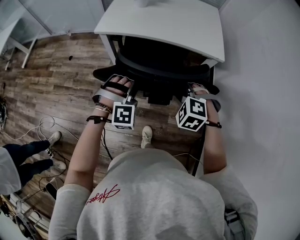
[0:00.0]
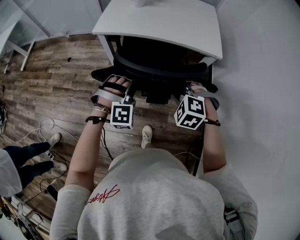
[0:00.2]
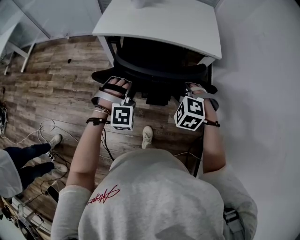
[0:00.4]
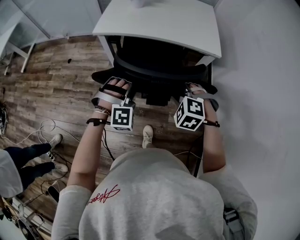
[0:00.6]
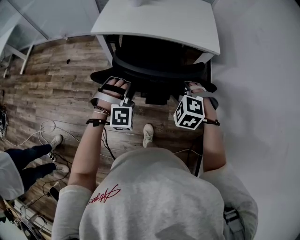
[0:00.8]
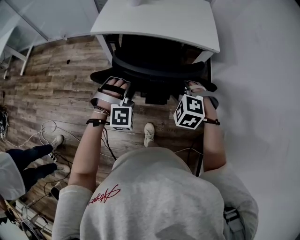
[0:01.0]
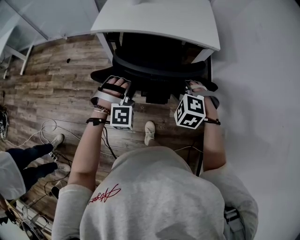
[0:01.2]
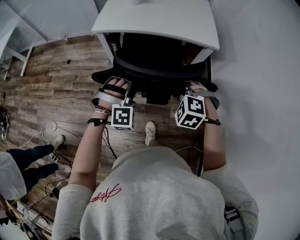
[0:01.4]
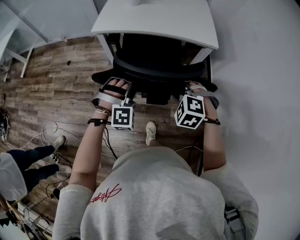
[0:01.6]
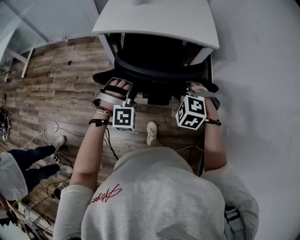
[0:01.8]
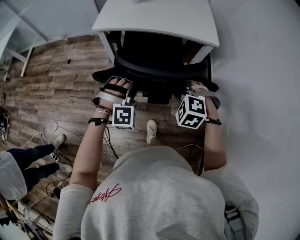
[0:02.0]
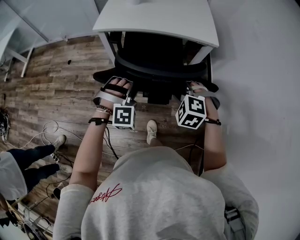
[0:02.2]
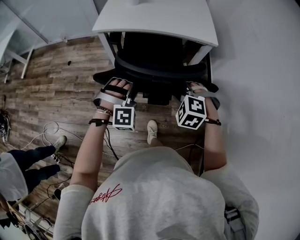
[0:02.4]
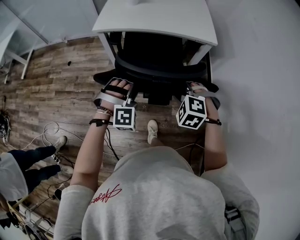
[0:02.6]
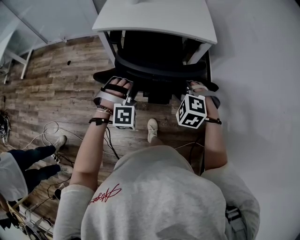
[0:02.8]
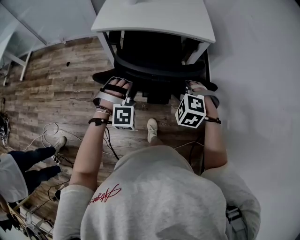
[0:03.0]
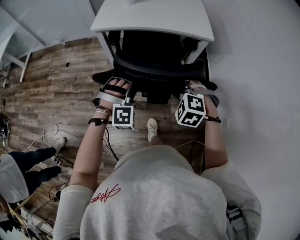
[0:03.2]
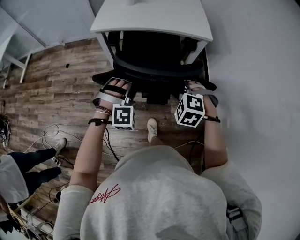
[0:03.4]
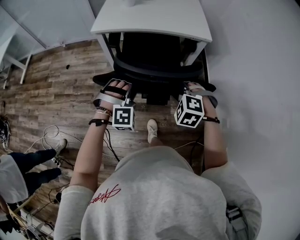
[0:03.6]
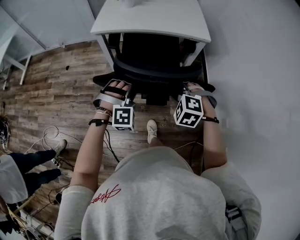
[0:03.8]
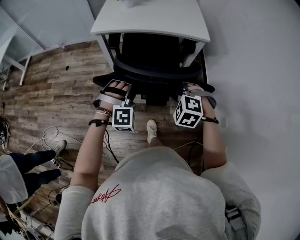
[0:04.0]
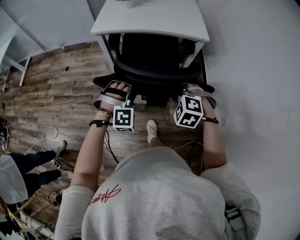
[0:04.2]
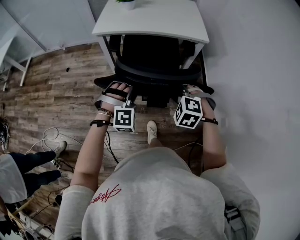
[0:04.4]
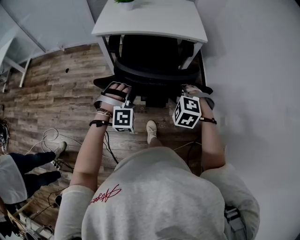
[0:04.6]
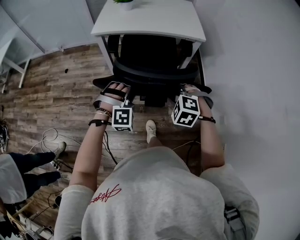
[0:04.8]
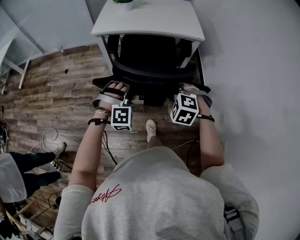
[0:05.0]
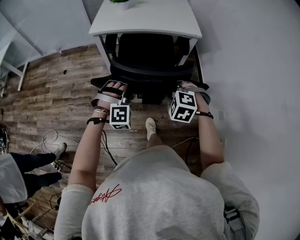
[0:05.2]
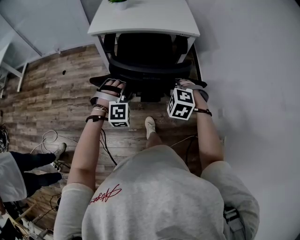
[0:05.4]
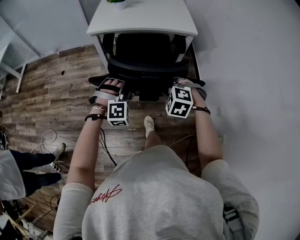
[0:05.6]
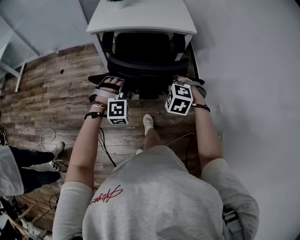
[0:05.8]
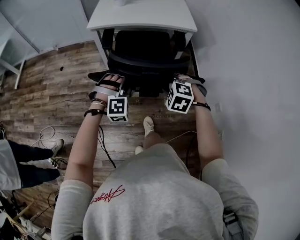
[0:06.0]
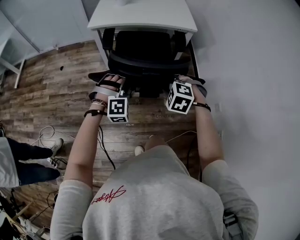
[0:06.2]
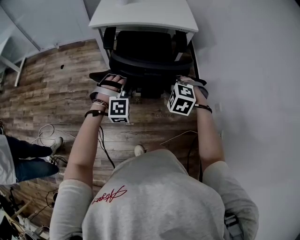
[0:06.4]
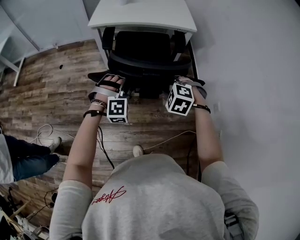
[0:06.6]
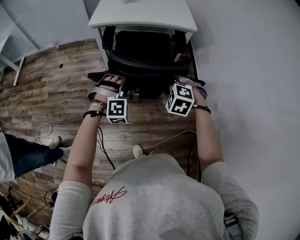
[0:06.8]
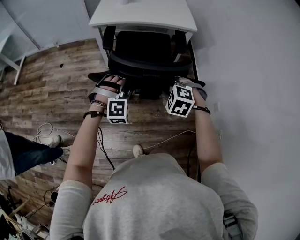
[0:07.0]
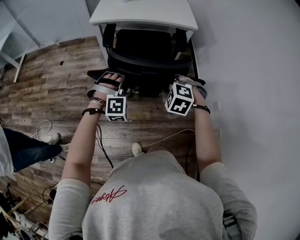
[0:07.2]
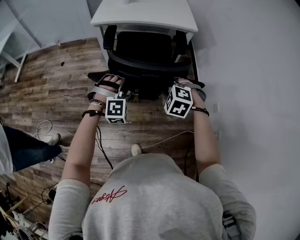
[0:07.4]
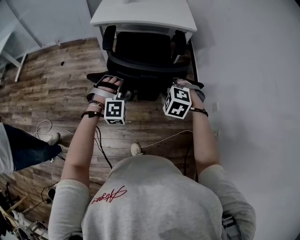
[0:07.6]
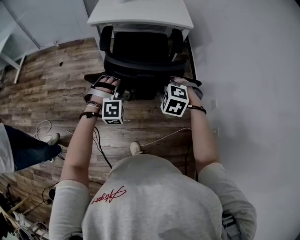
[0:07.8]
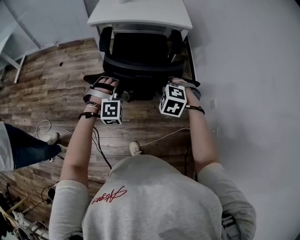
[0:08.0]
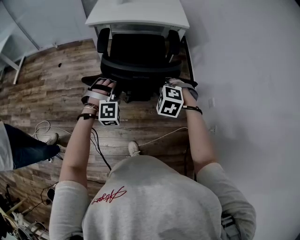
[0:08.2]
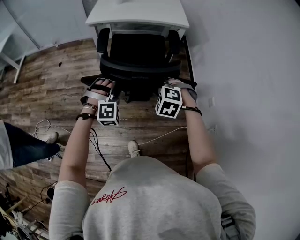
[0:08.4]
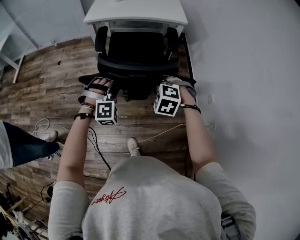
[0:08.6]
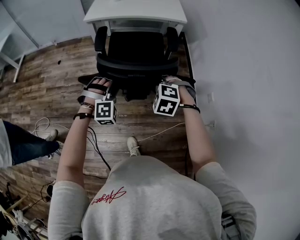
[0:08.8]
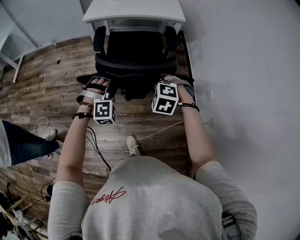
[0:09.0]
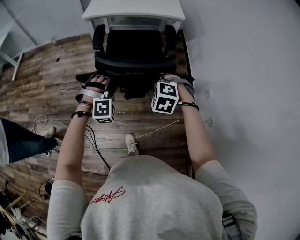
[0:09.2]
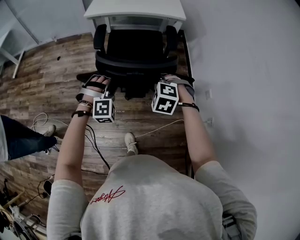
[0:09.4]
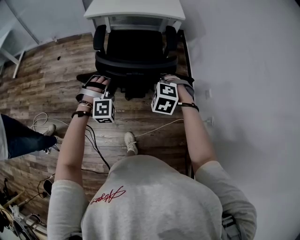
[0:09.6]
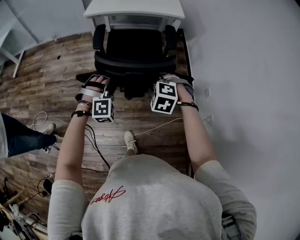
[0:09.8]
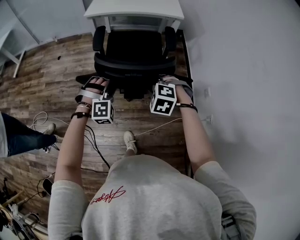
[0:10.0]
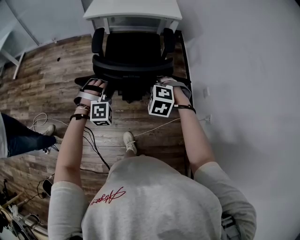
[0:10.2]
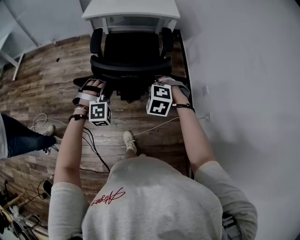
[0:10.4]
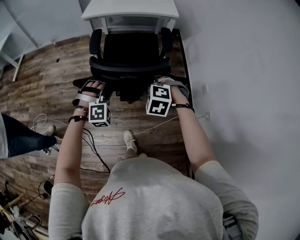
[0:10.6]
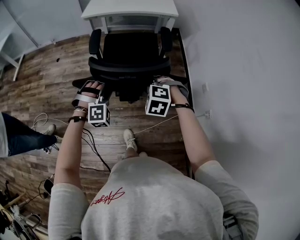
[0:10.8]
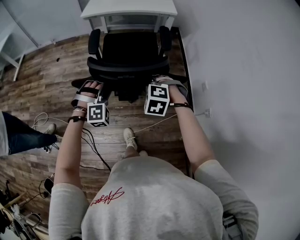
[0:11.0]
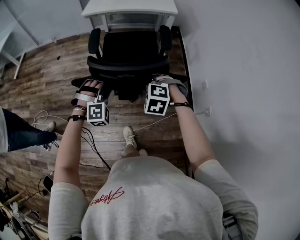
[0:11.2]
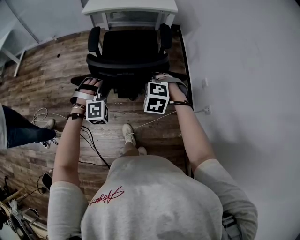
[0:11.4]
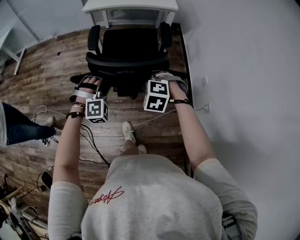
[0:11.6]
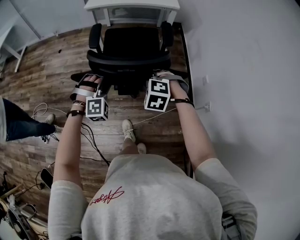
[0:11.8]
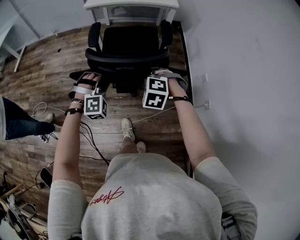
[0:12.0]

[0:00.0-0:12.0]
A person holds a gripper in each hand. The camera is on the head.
0:00.0 to 0:01.6: The two grippers go roughly 5 cm backward.
0:01.6 to 0:03.0: The grippers stay close to where they were, moving slightly.
0:03.0 to 0:04.4: The grippers move only a little.
0:04.4 to 0:06.0: The grippers both shift backward by some 5 cm.
0:06.0 to 0:07.6: Both grippers move backward, roughly 5 cm.
0:07.6 to 0:09.0: The two grippers go approximately 5 cm backward.
0:09.0 to 0:10.4: Both grippers move backward, approximately 5 cm.
0:10.4 to 0:12.0: Both grippers travel together backward, some 10 cm.

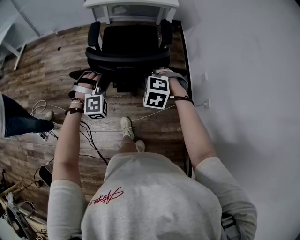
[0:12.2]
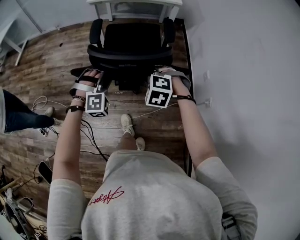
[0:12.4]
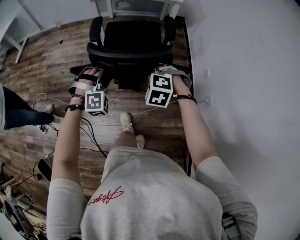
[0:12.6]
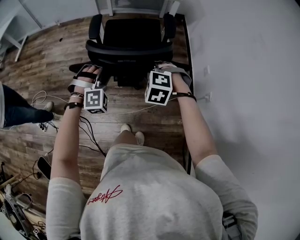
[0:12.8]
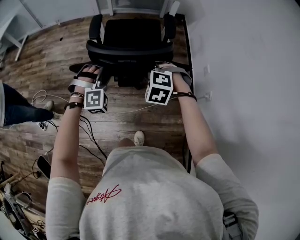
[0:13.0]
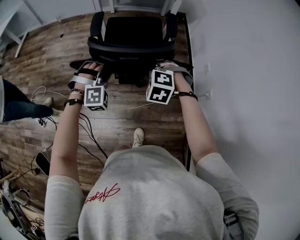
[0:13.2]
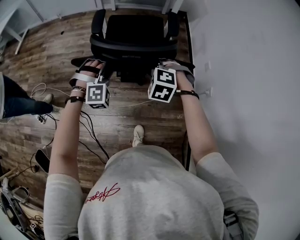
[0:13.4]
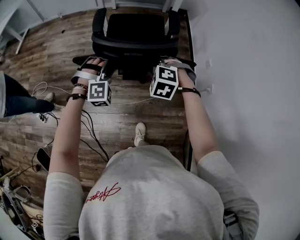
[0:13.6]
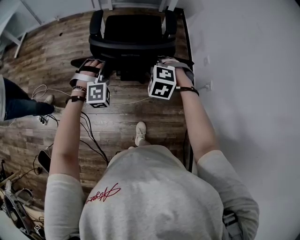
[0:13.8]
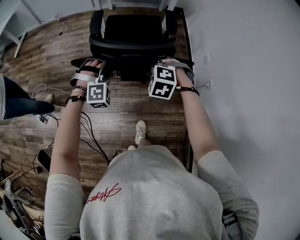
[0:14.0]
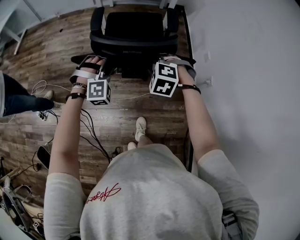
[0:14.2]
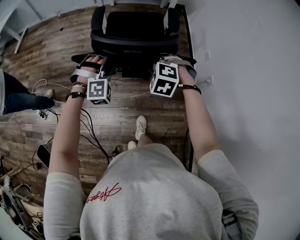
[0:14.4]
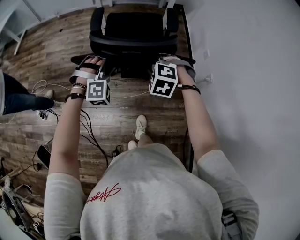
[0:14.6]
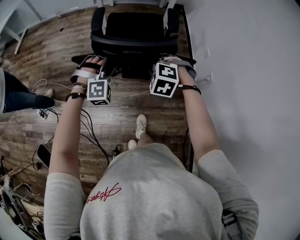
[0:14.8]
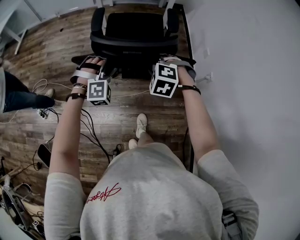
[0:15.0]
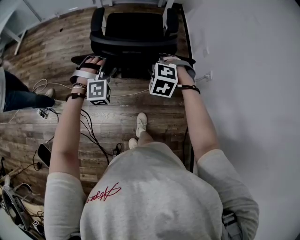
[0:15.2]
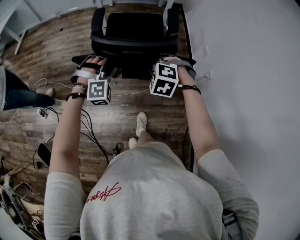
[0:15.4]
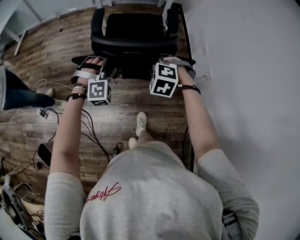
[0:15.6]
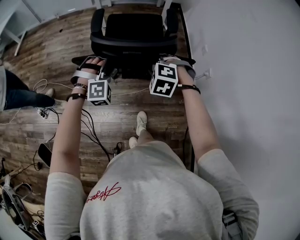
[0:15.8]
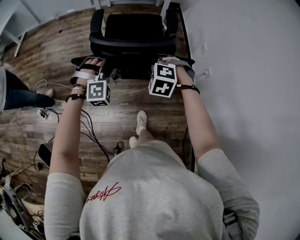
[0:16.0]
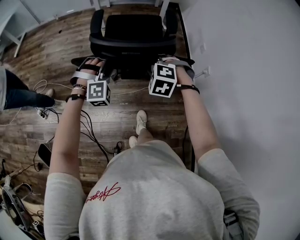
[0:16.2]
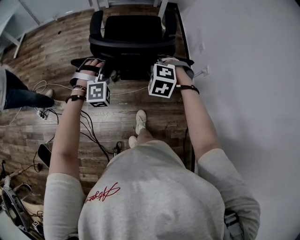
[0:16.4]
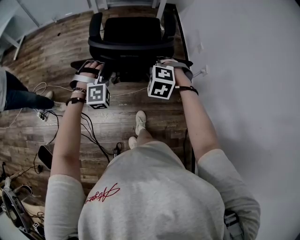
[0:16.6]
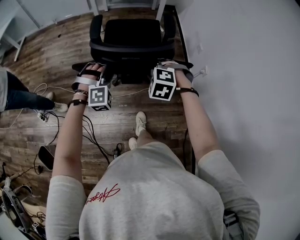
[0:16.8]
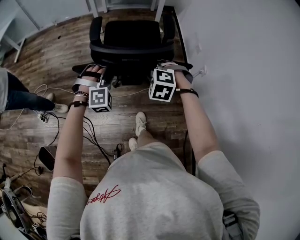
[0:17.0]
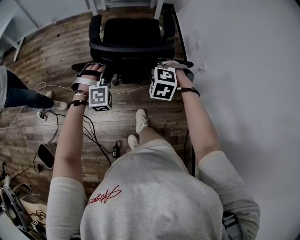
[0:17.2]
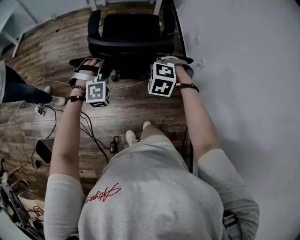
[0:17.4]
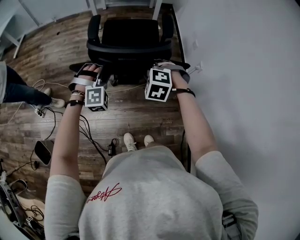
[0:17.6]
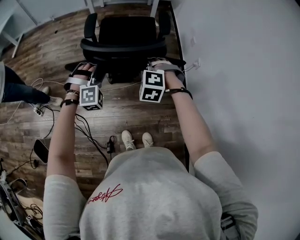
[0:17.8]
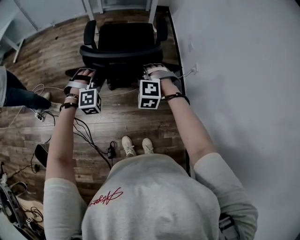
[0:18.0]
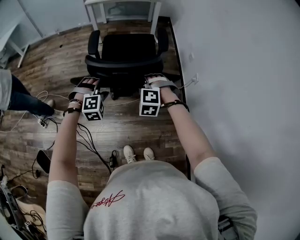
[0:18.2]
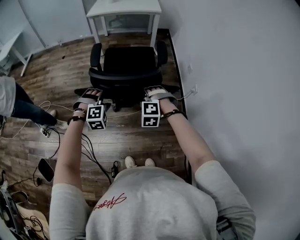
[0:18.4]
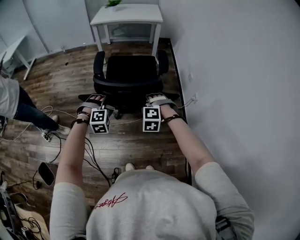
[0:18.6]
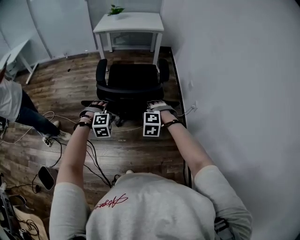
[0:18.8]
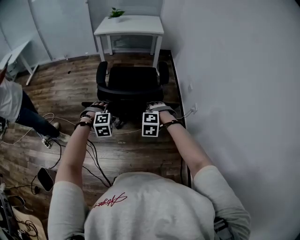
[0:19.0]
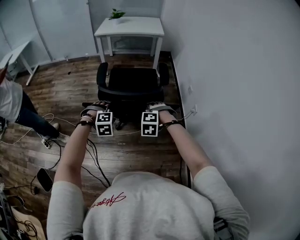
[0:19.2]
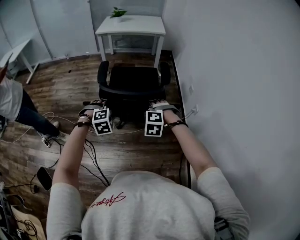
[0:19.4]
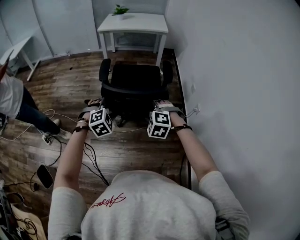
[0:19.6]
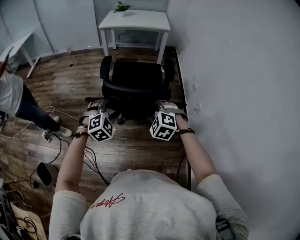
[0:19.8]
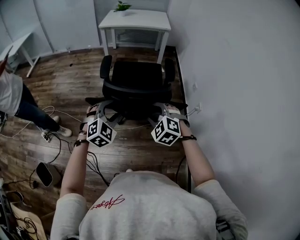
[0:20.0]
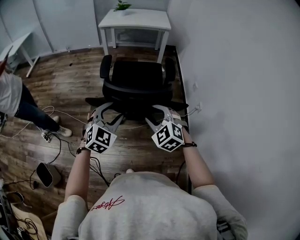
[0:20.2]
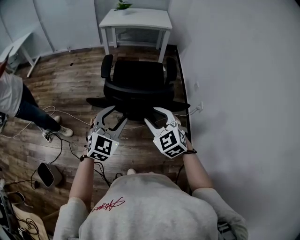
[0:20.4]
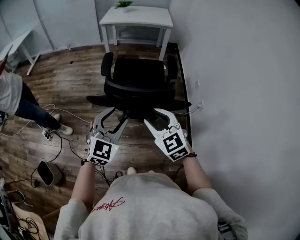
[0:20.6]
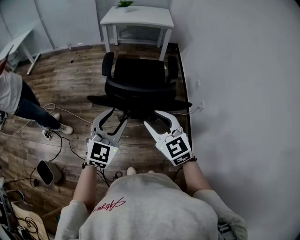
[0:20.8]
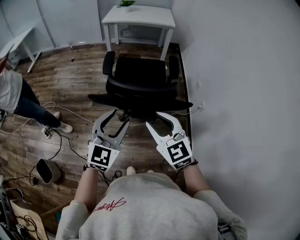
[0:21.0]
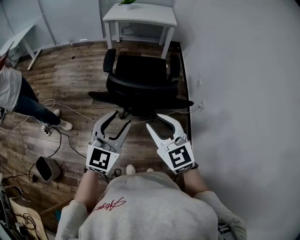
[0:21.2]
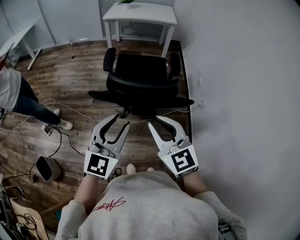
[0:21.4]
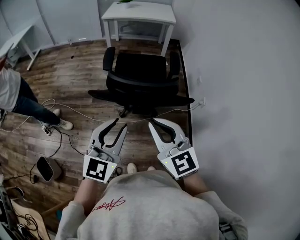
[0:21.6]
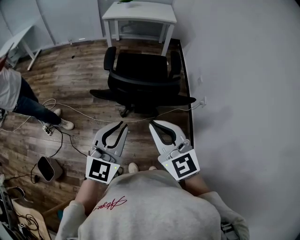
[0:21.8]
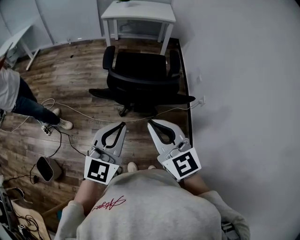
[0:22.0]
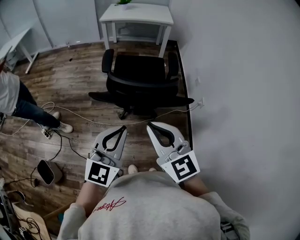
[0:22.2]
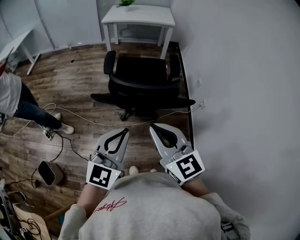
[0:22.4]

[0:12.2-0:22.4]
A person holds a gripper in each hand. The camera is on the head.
0:12.2 to 0:13.6: Both grippers move backward, approximately 5 cm.
0:13.6 to 0:15.2: The two grippers go about 10 cm backward.
0:15.2 to 0:16.6: Both grippers move backward, roughly 5 cm.
0:16.6 to 0:18.0: The two grippers go some 5 cm backward.
0:18.0 to 0:19.4: The right gripper opens up, while the left gripper opens up.
0:19.4 to 0:21.0: Both grippers travel together upward and backward, approximately 15 cm. The left gripper tips its fingers upward by some 50 degrees. Meanwhile the right gripper tips its fingers upward by about 40 degrees.
0:21.0 to 0:22.4: The left gripper goes approximately 5 cm backward, and closes its fingers; the right gripper shifts by roughly 5 cm, and closes.

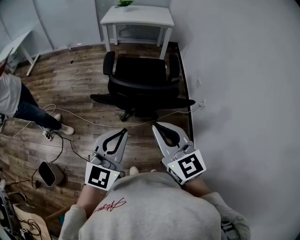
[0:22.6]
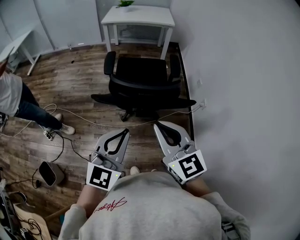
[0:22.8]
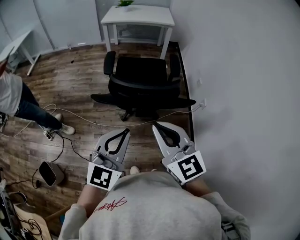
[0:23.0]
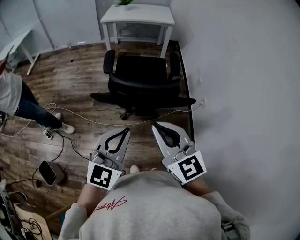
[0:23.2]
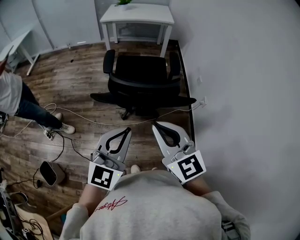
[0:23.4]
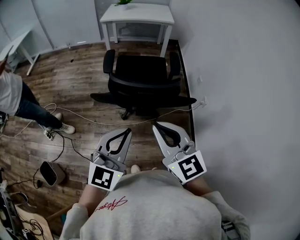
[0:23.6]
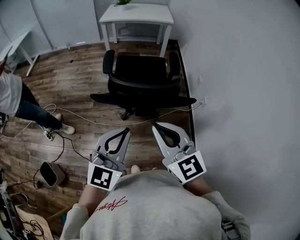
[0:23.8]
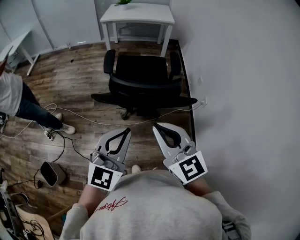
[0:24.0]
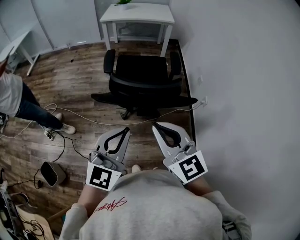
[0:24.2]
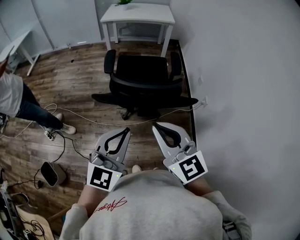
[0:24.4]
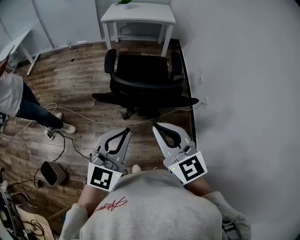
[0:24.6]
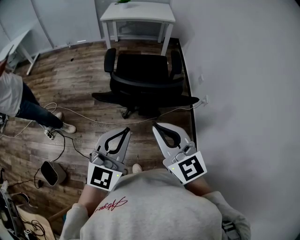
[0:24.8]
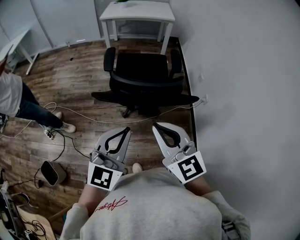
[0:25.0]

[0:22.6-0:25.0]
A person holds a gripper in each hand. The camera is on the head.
0:22.6 to 0:25.0: The grippers make only small movements.
